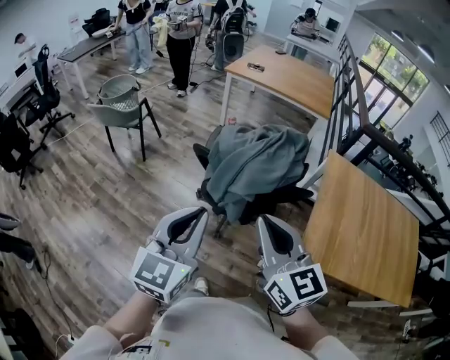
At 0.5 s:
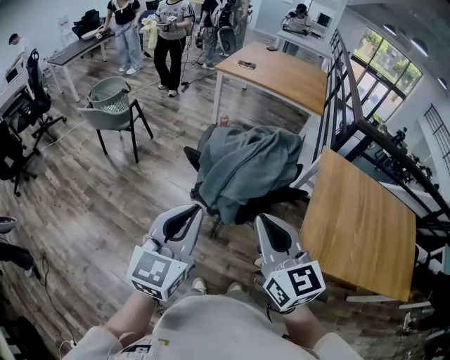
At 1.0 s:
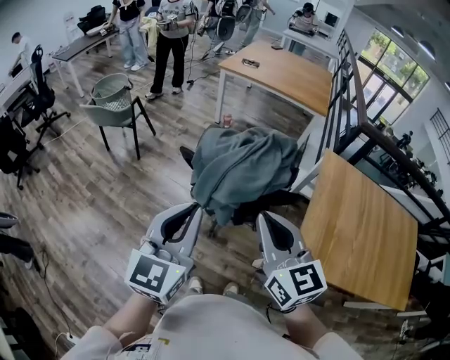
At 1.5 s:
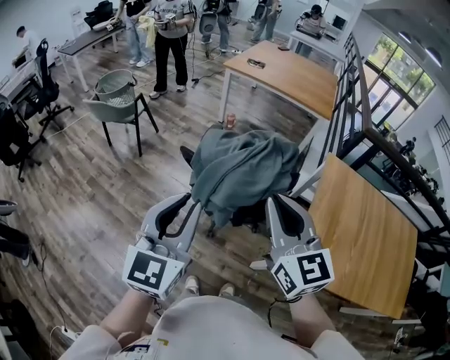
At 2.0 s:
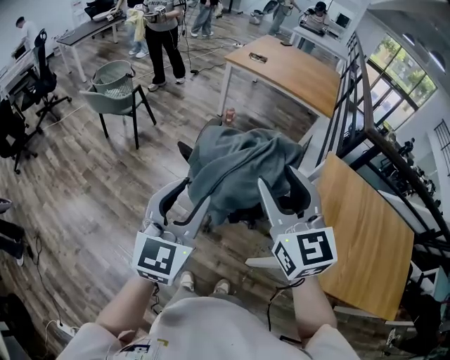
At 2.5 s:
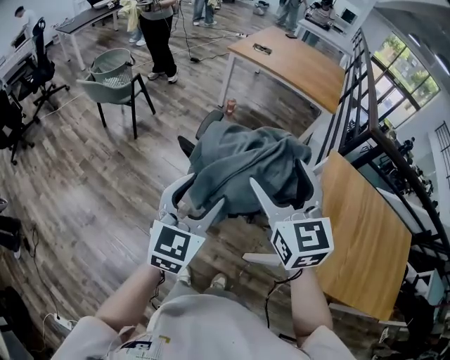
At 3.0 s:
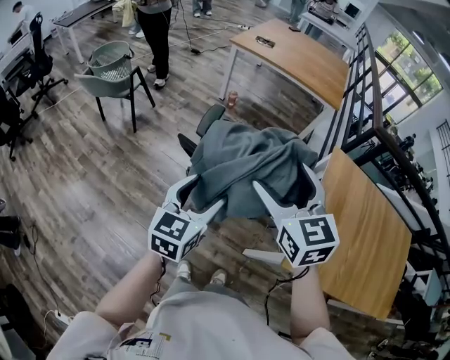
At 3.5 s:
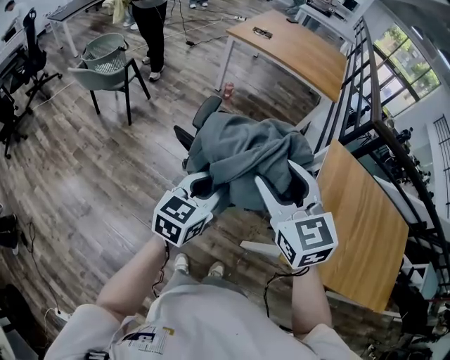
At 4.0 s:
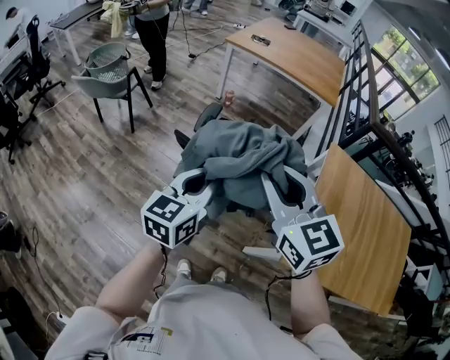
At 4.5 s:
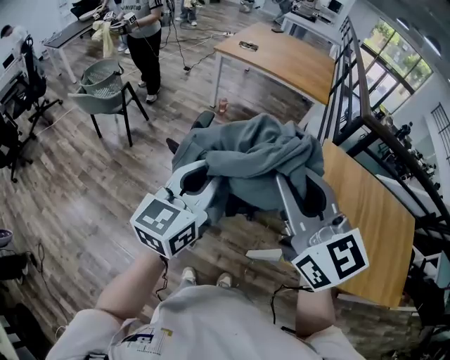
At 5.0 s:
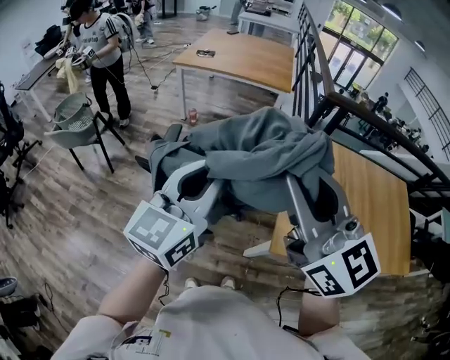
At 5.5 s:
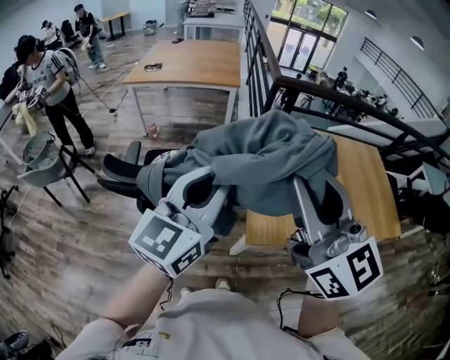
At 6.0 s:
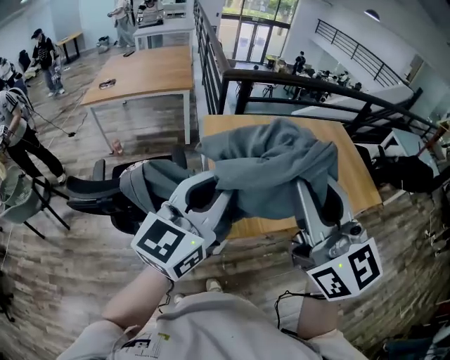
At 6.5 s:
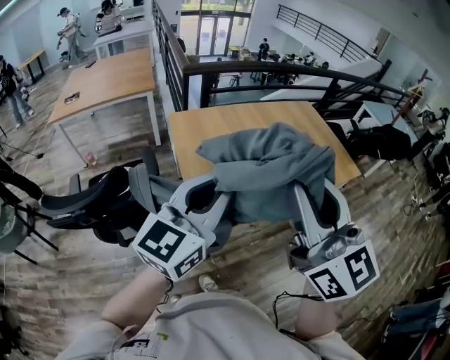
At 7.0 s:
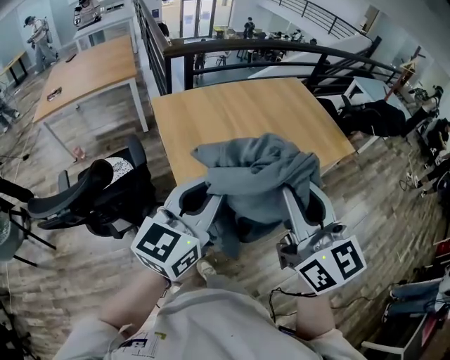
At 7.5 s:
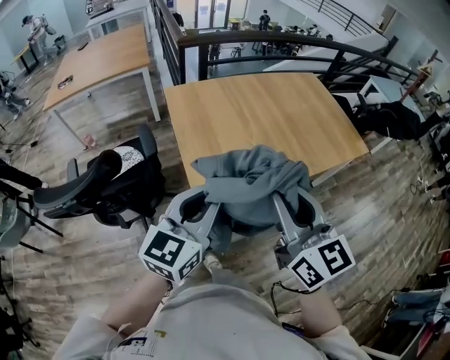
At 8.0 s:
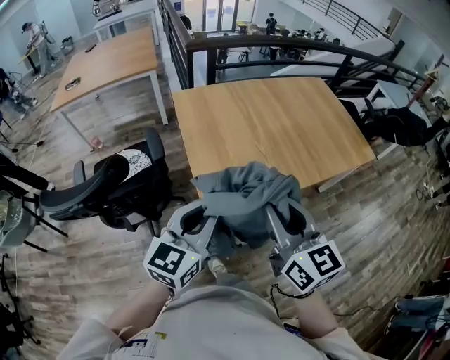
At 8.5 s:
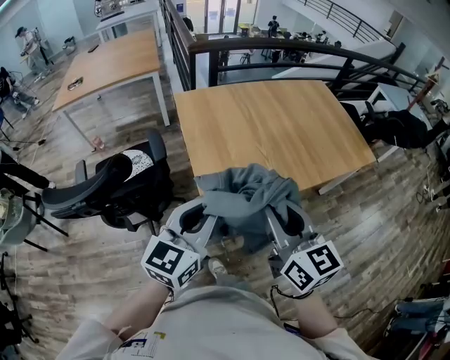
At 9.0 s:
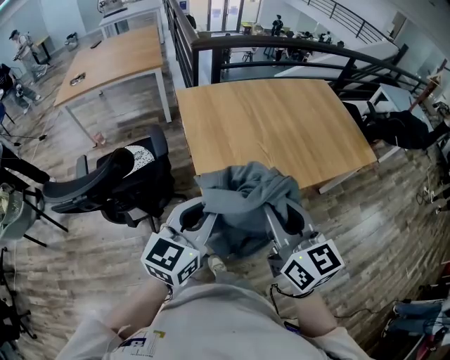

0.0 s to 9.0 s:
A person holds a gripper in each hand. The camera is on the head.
0.0 to 2.0 s: The right gripper heads forward and to the right, covering roughly 15 cm, and opens. The left gripper travels forward by some 10 cm, and opens up.
2.0 to 4.5 s: The left gripper shifts approximately 10 cm forward and to the right, travels downward and back again, roughly 15 cm each way, turns by some 20 degrees, and closes. Meanwhile the right gripper opens, then closes again.
4.5 to 7.0 s: The two grippers travel together, about 50 cm. The right gripper turns by roughly 50 degrees; the left gripper rotates some 50 degrees.
7.0 to 9.0 s: The two grippers go about 10 cm downward.

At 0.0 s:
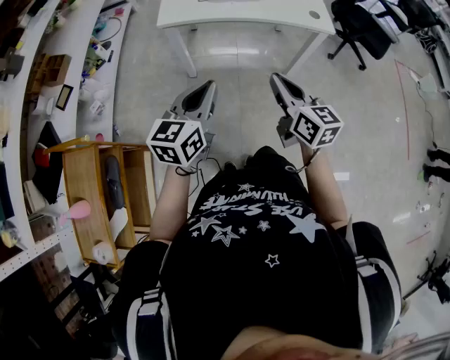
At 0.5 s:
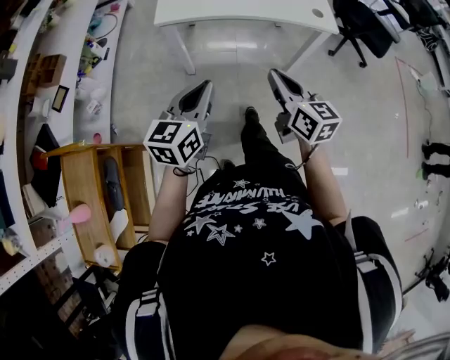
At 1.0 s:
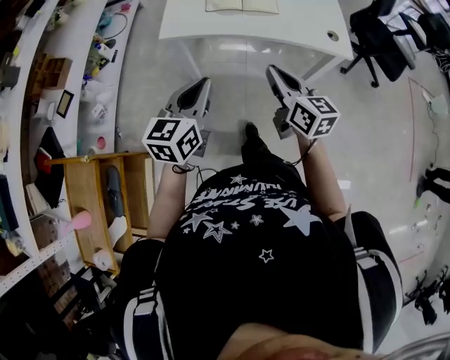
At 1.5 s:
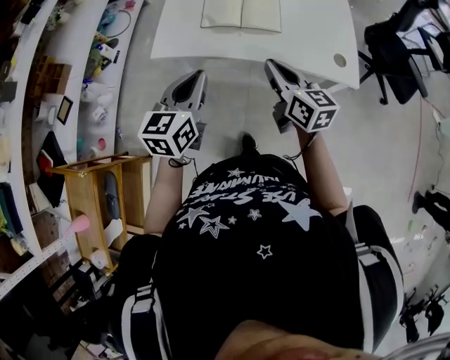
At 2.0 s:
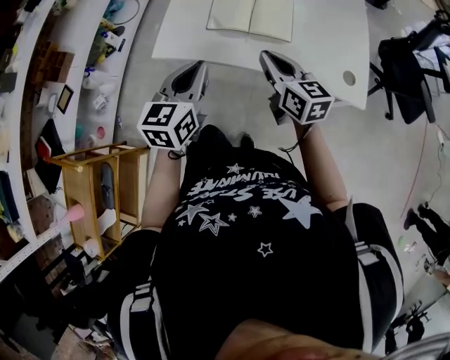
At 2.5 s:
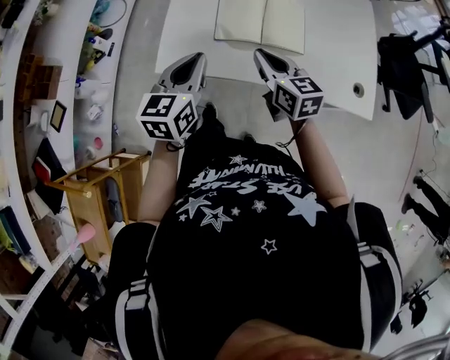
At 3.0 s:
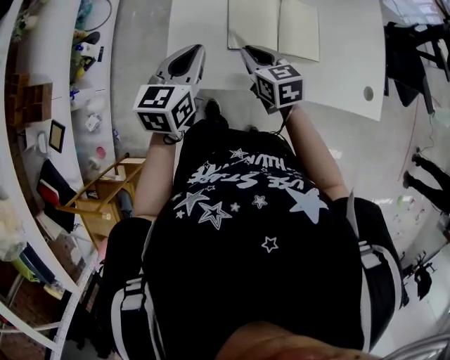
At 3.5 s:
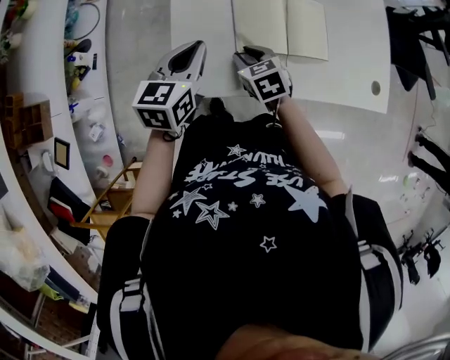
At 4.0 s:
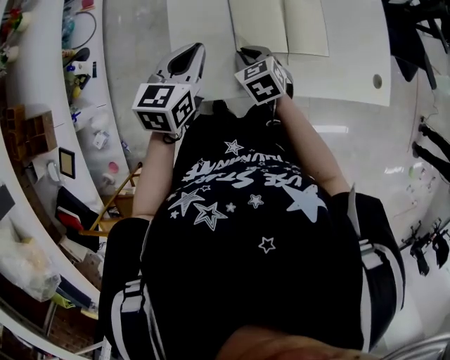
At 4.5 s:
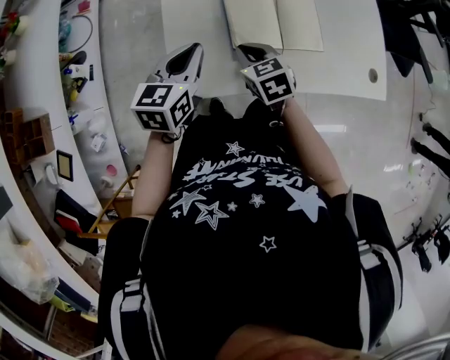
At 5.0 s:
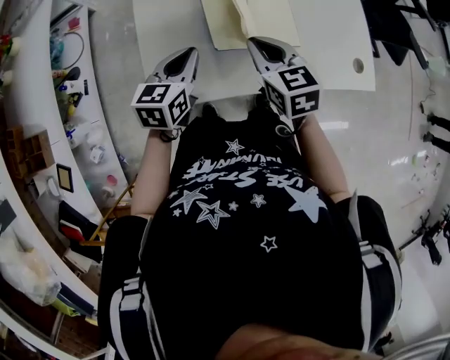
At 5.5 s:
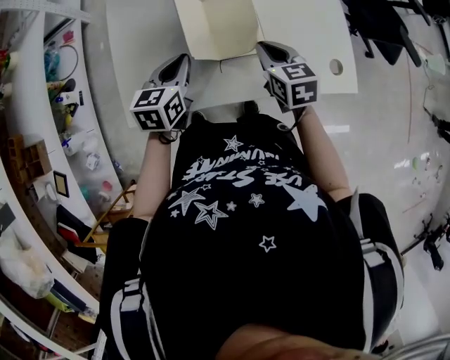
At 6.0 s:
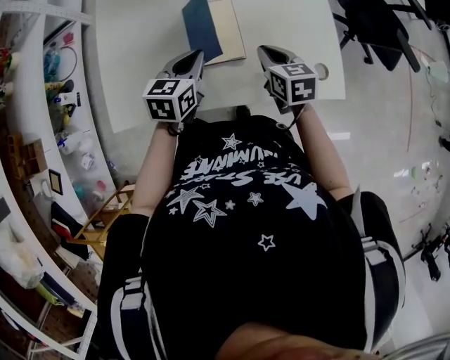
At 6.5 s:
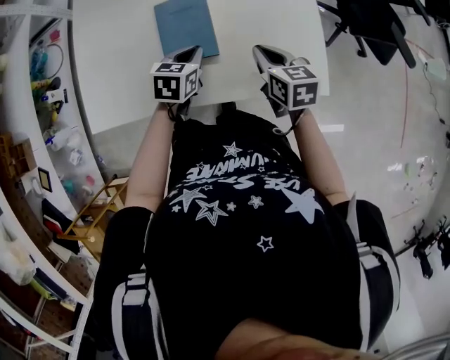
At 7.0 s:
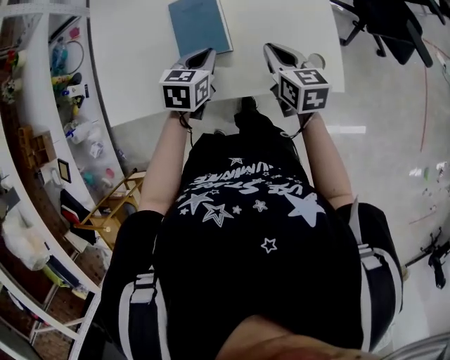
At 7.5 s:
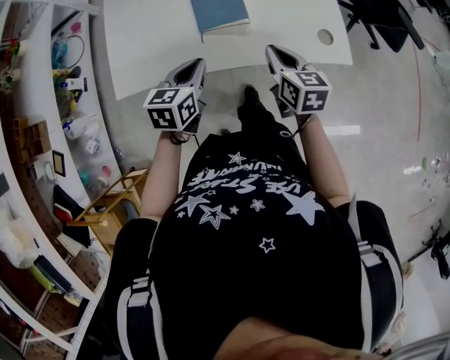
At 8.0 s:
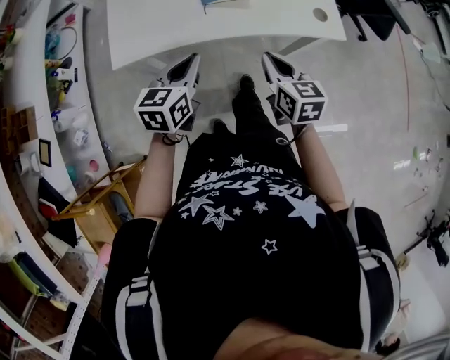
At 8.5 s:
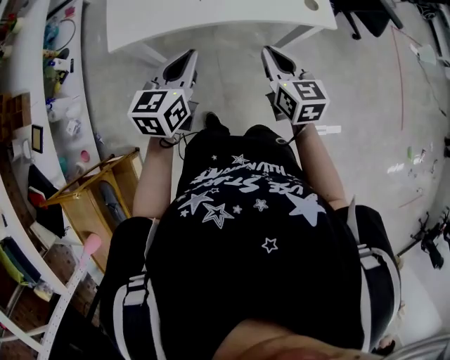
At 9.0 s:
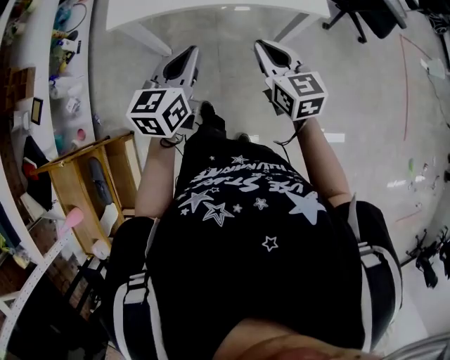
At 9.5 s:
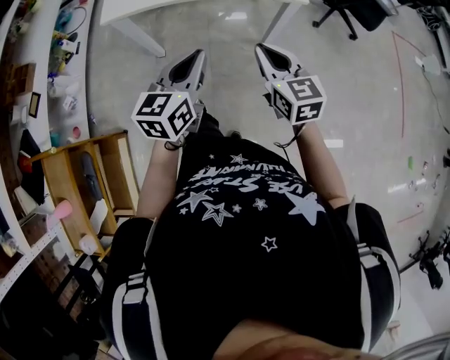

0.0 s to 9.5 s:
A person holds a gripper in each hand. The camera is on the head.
0.0 to 2.0 s: The two grippers go roughly 35 cm forward.
2.0 to 4.0 s: The left gripper is displaced forward and to the left by roughly 25 cm, and swivels some 20 degrees. Meanwhile the right gripper shifts roughly 30 cm to the left, downward and forward, and angles its fingers downward, by approximately 40 degrees.
4.0 to 5.5 s: The left gripper travels to the right by about 15 cm. The right gripper moves to the right, some 25 cm, and rotates approximately 20 degrees.
5.5 to 7.5 s: Both grippers move backward and to the right, some 15 cm.
7.5 to 9.5 s: The grippers both shift backward by about 30 cm. The right gripper swivels approximately 20 degrees.

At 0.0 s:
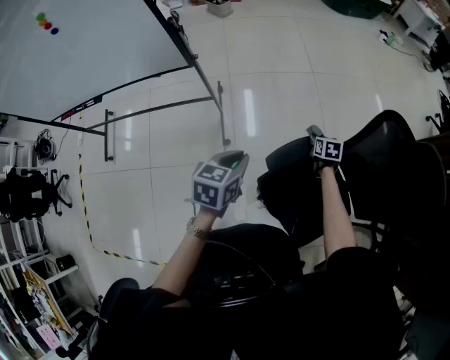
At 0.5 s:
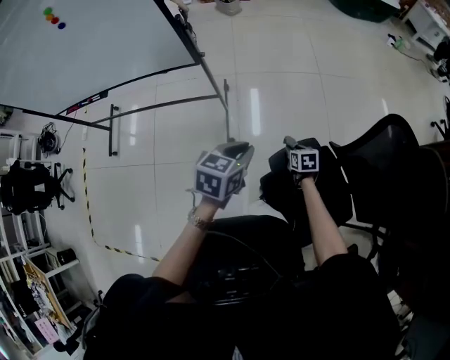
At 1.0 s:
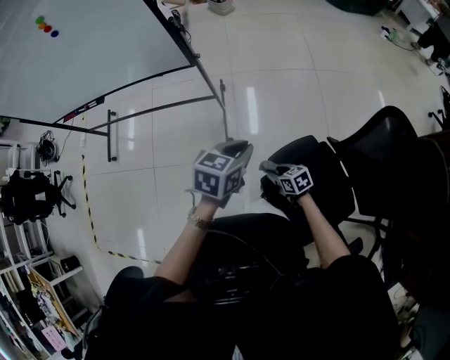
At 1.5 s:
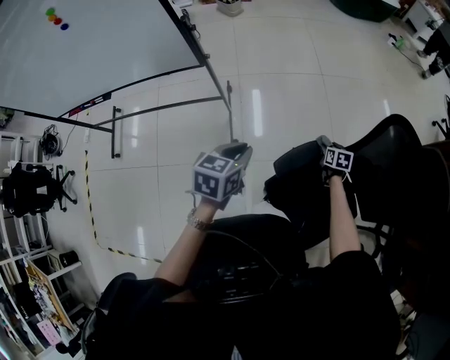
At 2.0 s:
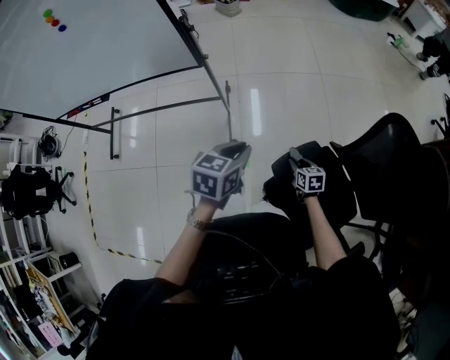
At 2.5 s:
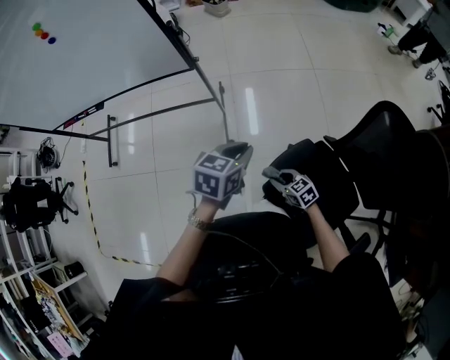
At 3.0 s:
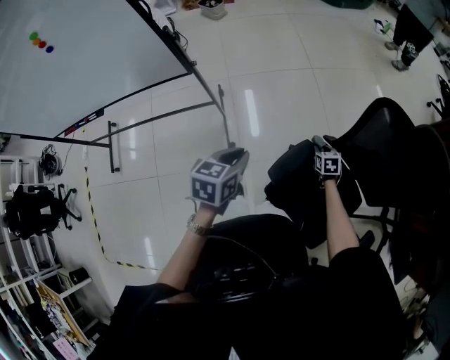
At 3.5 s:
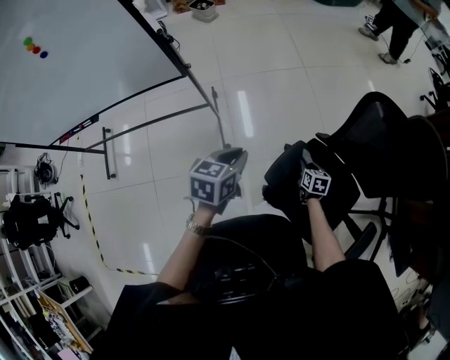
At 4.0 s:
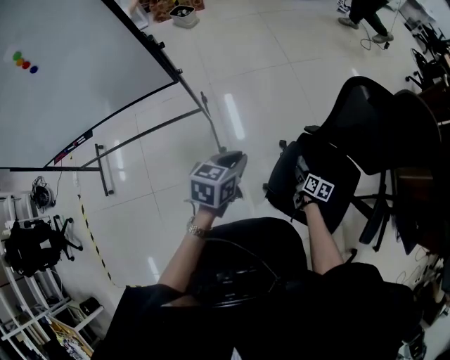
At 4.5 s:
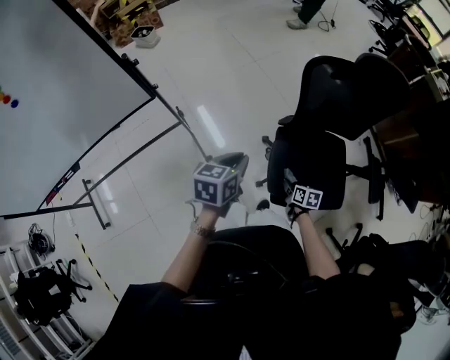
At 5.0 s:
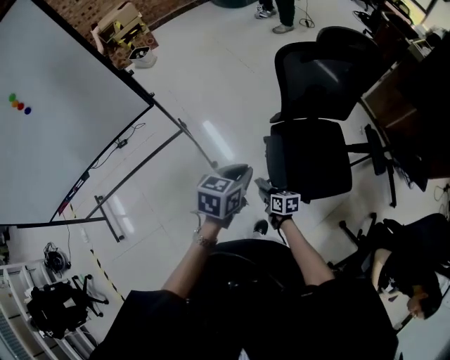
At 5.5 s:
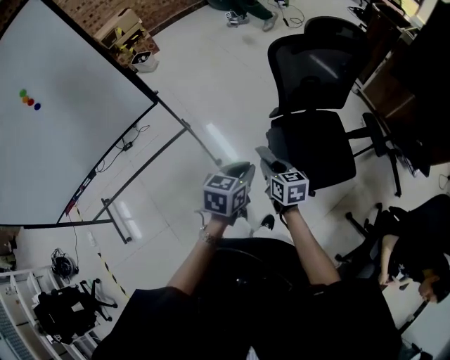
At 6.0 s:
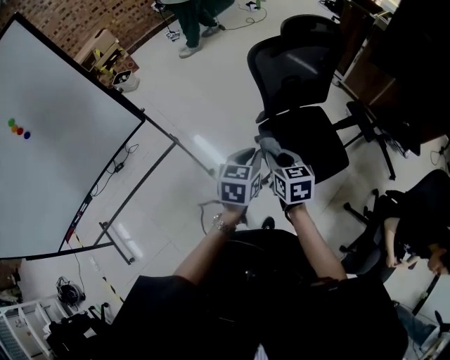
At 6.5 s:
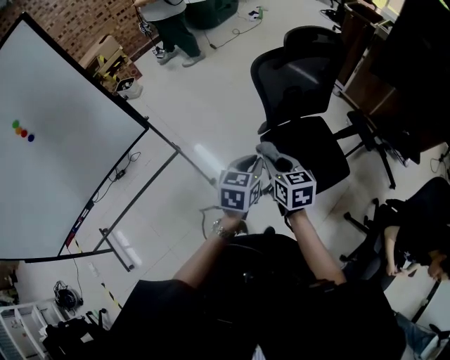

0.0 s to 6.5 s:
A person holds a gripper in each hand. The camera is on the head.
2.0 to 4.5 s: The left gripper rotates approximately 20 degrees. The right gripper ends up about 15 cm from where it was, and rotates about 40 degrees.
4.5 to 6.5 s: The right gripper is displaced upward by roughly 30 cm, and rotates about 30 degrees; the left gripper heads to the right, backward and upward, covering roughly 15 cm.

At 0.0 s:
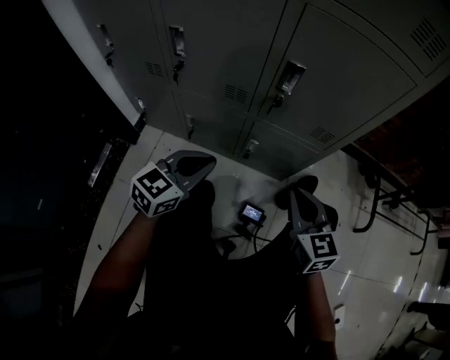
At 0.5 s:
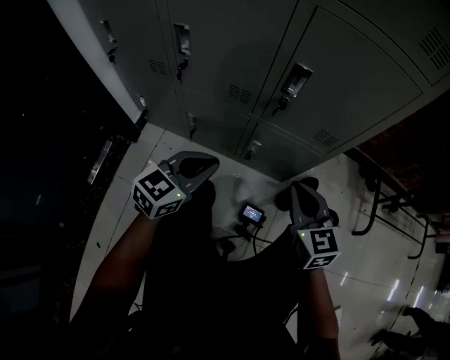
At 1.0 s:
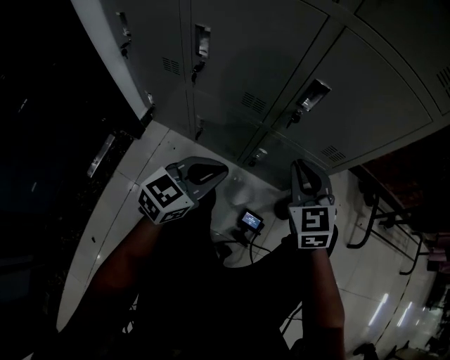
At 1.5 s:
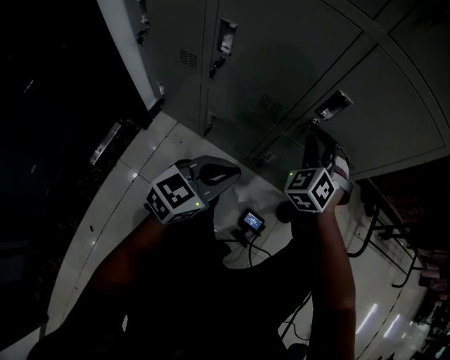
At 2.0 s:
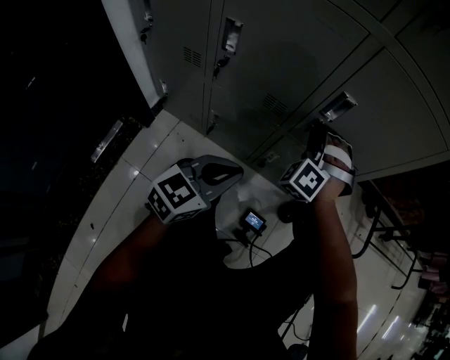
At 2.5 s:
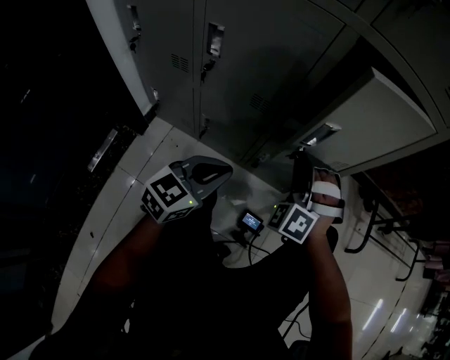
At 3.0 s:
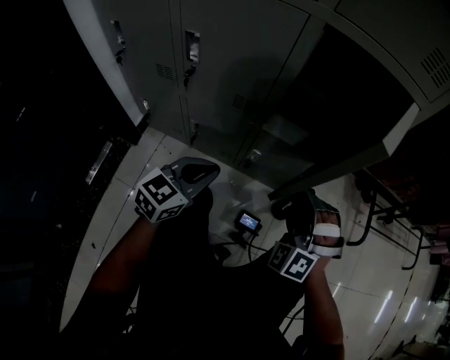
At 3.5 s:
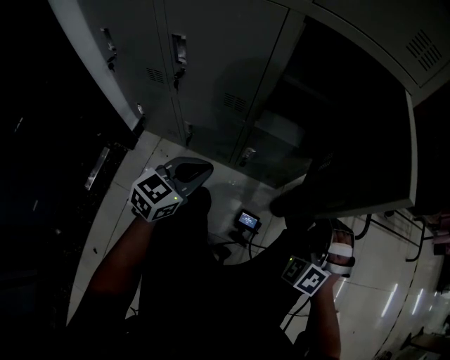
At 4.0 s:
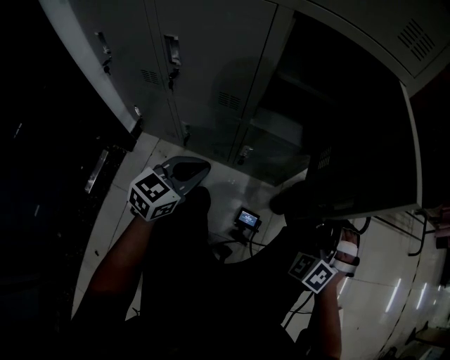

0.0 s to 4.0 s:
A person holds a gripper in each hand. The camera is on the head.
0.0 to 2.0 s: The right gripper moves forward and to the left, some 25 cm, and twists some 80 degrees counterclockwise, seen from behind.
2.0 to 4.0 s: The right gripper travels to the right and backward by roughly 30 cm.
